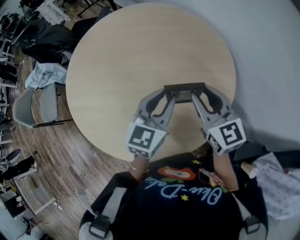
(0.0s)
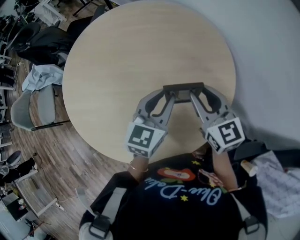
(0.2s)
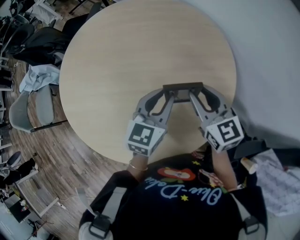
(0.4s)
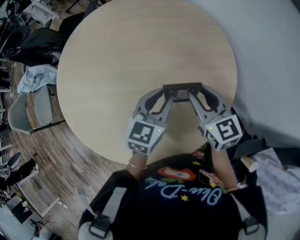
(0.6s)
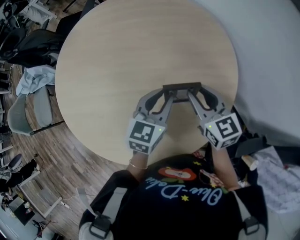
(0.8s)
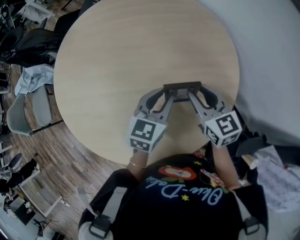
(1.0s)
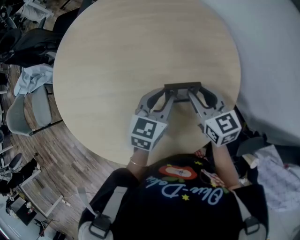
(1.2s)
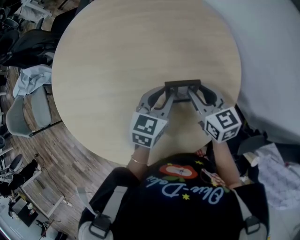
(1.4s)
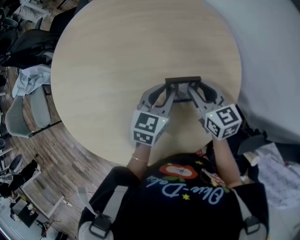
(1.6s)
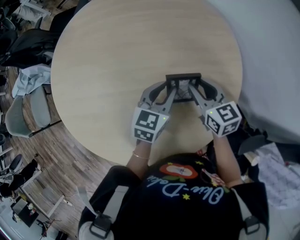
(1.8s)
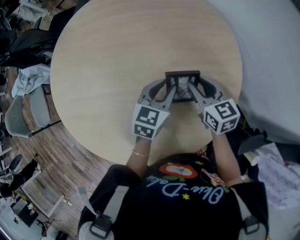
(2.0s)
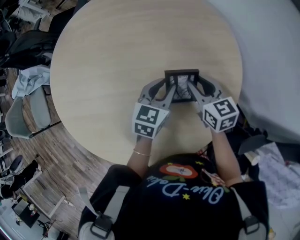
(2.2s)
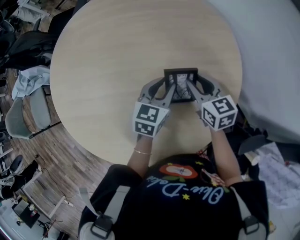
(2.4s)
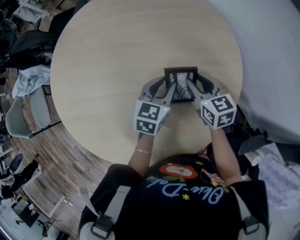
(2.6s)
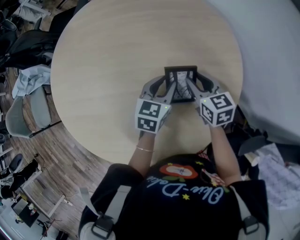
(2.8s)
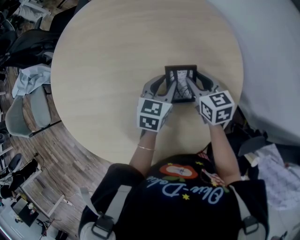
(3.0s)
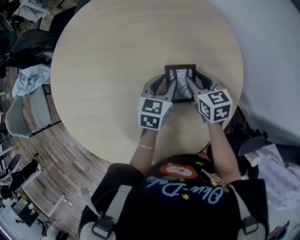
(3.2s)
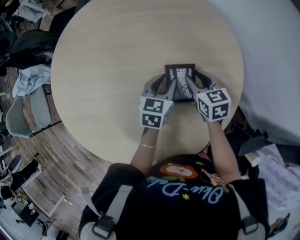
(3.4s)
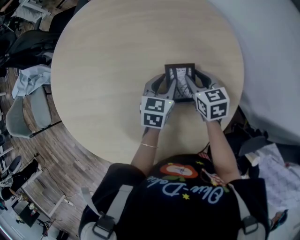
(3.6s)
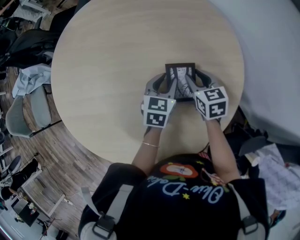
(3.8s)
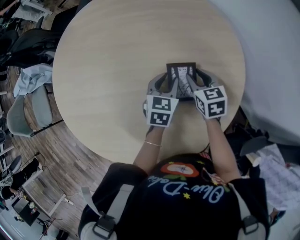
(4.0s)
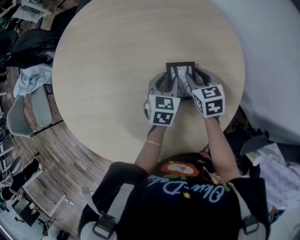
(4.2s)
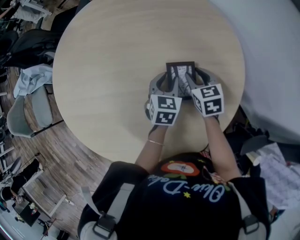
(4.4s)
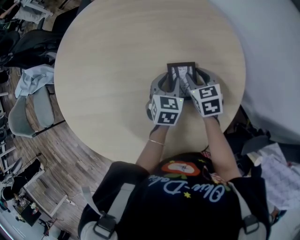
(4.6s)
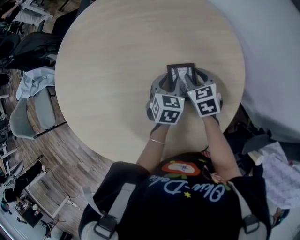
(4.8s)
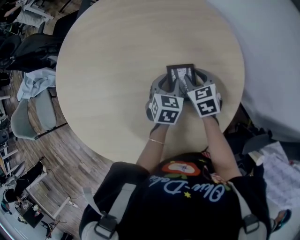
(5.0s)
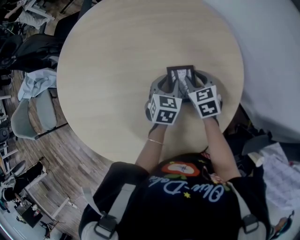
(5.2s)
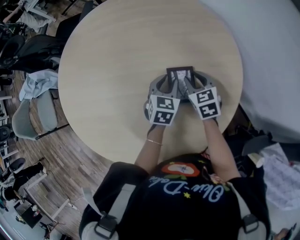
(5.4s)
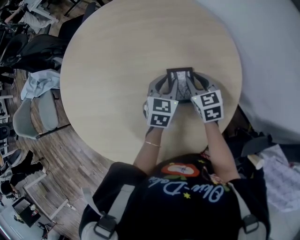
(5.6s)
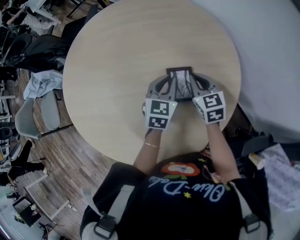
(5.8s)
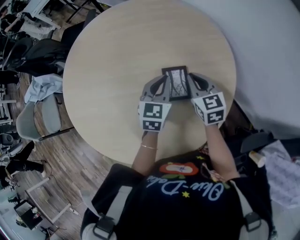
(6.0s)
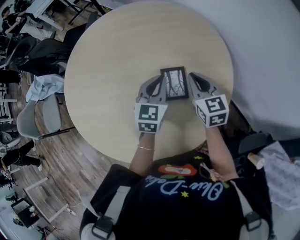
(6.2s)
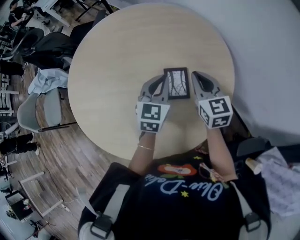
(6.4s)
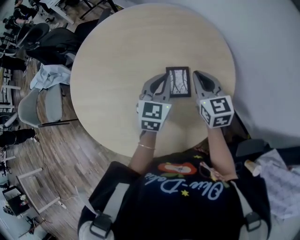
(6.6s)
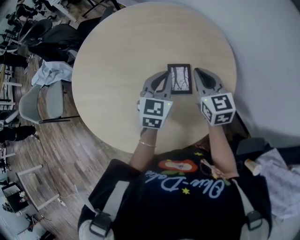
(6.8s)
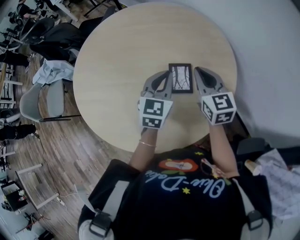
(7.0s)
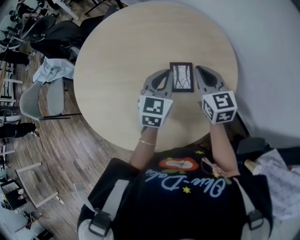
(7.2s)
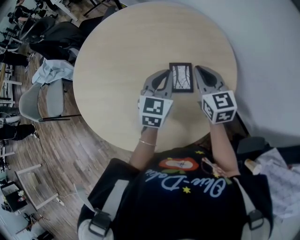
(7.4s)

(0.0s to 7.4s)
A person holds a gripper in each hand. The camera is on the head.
0.0s - 1.4s: The two grippers go approximately 10 cm downward.
1.4s - 3.0s: The left gripper shifts by about 5 cm. Meanwhile the right gripper goes approximately 5 cm forward and downward.
3.0s - 4.4s: The grippers move only a little.
4.4s - 6.0s: The two grippers go approximately 10 cm upward. The left gripper closes its fingers. The right gripper closes up.
6.0s - 7.4s: The two grippers go roughly 10 cm upward.

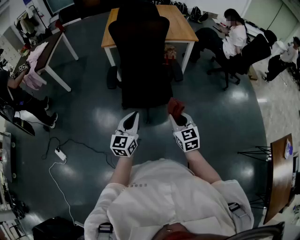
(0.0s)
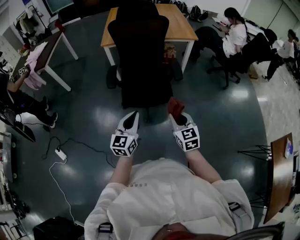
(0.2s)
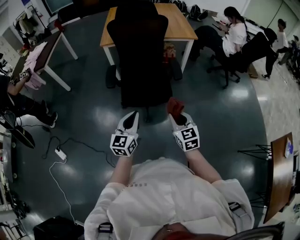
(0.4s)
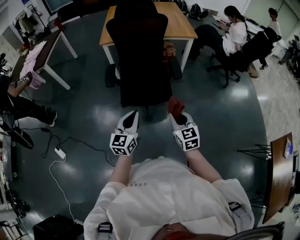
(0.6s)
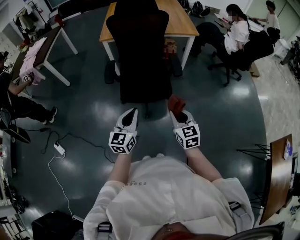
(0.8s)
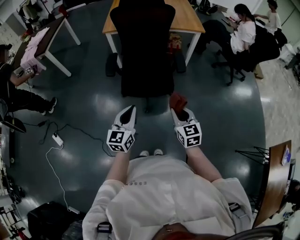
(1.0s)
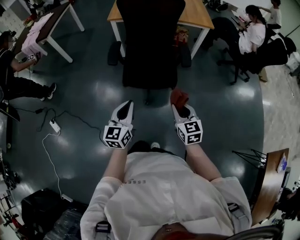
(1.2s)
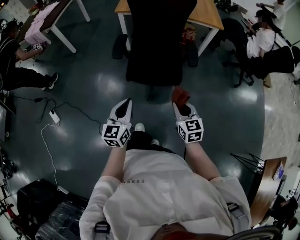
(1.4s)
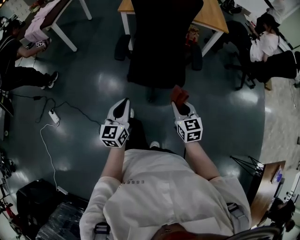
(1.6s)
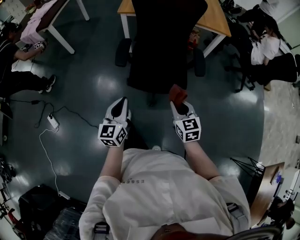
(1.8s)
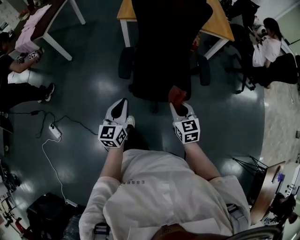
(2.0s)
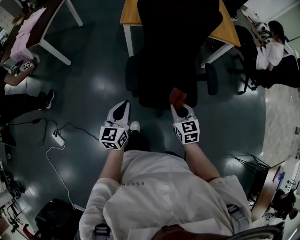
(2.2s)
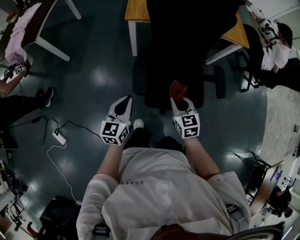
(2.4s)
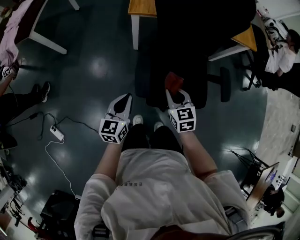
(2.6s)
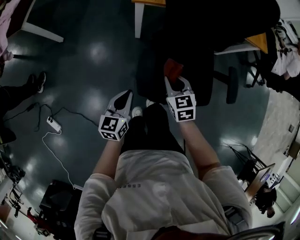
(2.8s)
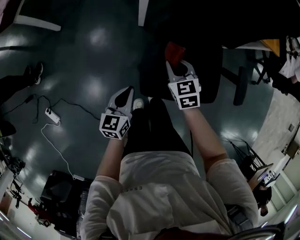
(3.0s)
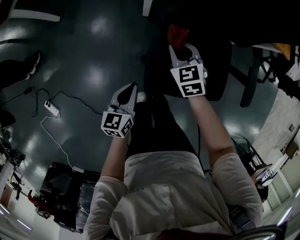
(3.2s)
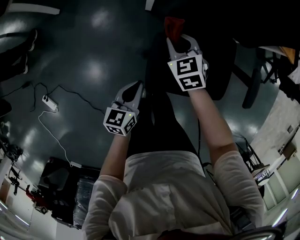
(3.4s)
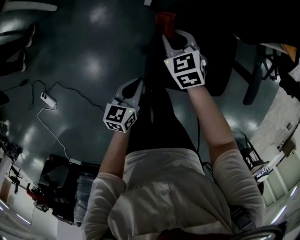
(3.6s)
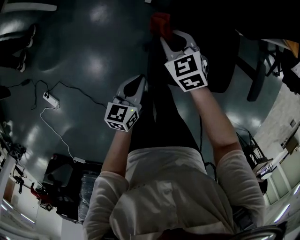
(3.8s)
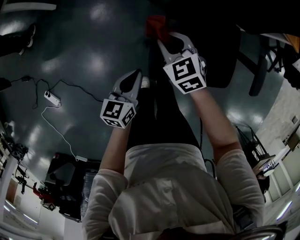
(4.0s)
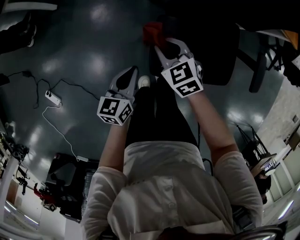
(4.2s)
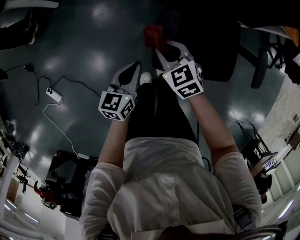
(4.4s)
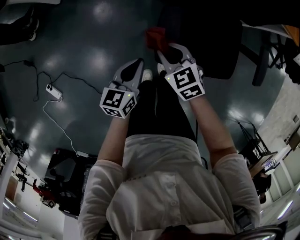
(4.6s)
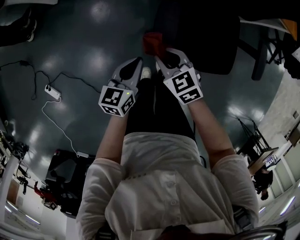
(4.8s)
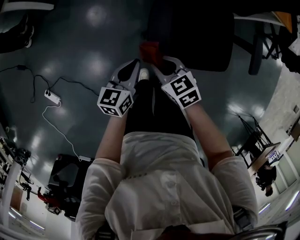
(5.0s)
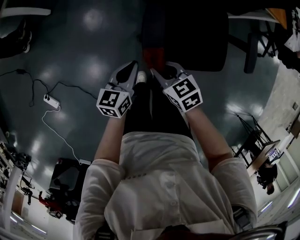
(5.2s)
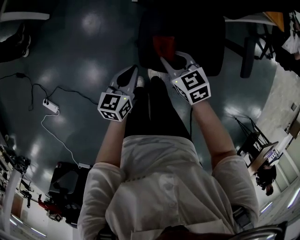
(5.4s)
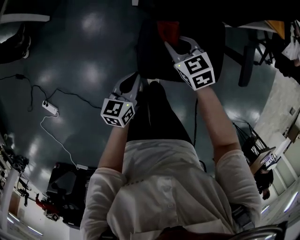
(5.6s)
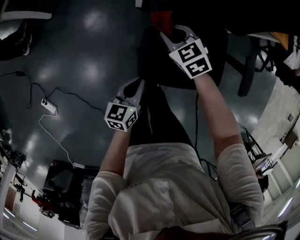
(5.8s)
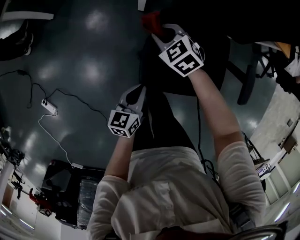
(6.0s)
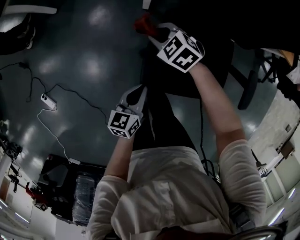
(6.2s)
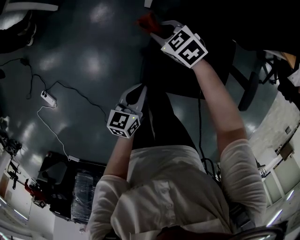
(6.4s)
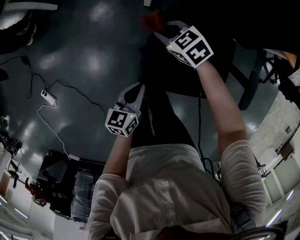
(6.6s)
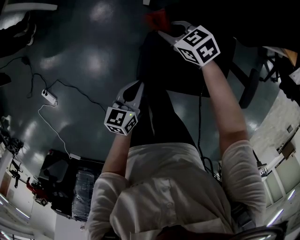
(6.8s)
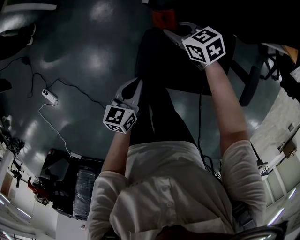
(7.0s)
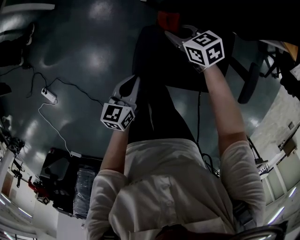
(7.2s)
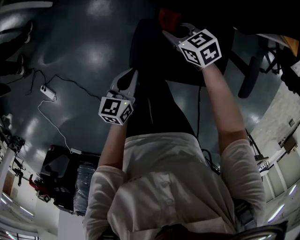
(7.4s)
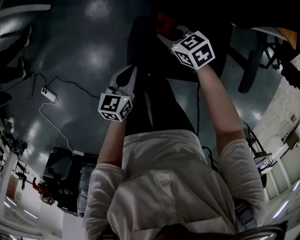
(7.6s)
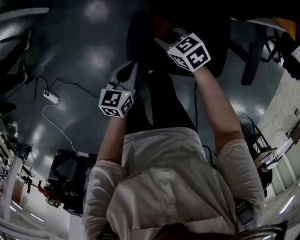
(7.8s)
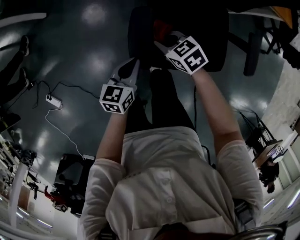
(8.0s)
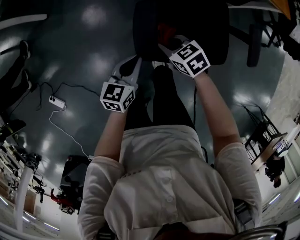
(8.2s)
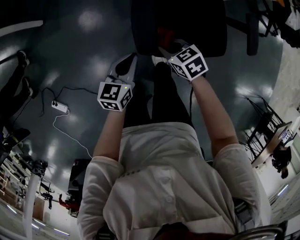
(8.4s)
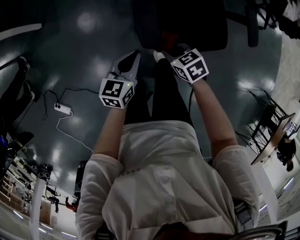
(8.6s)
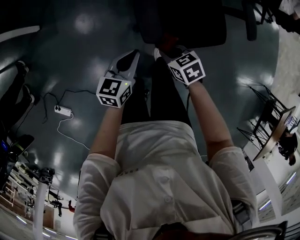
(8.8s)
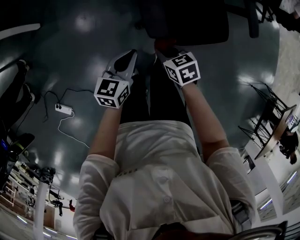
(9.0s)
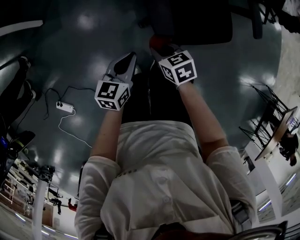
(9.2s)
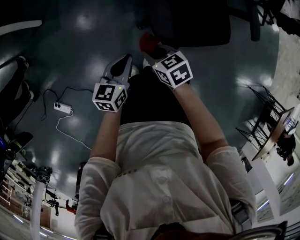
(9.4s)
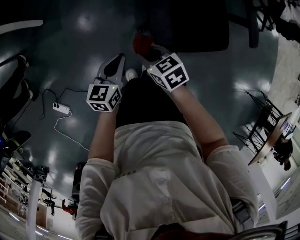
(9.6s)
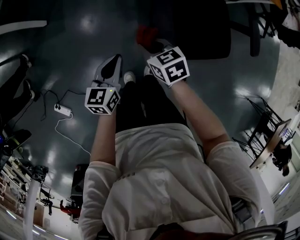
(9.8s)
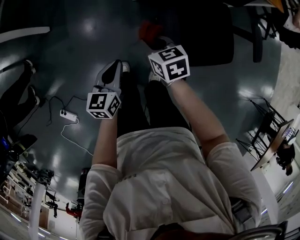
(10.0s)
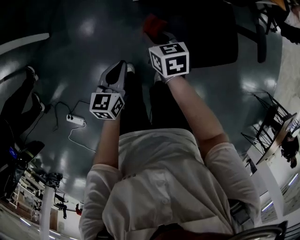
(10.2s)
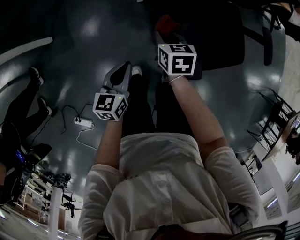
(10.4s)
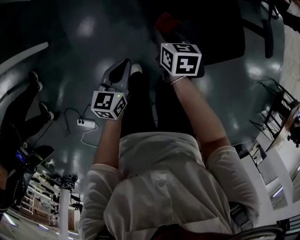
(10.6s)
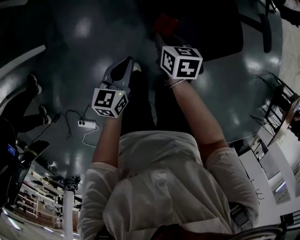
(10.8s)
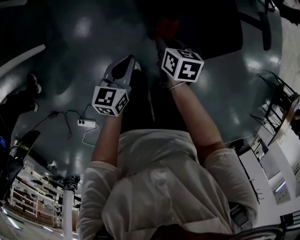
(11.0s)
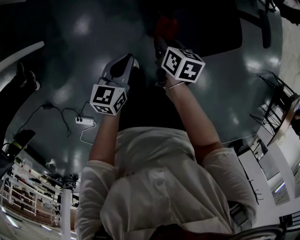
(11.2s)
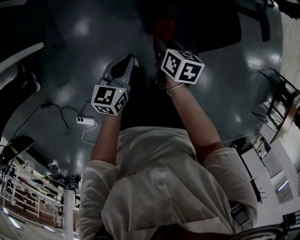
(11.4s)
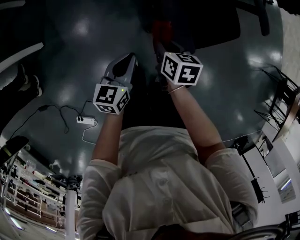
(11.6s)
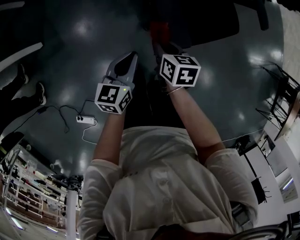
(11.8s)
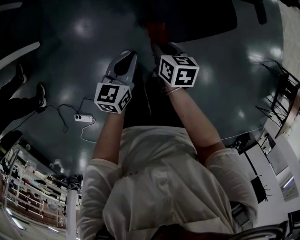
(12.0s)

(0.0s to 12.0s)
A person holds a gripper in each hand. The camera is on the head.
0.0s - 1.6s: The right gripper heads downward, covering approximately 5 cm, while the left gripper is displaced to the left and downward by about 10 cm.
1.6s - 3.0s: The right gripper is displaced forward and to the left by some 50 cm. The left gripper heads forward, to the left and downward, covering roughly 40 cm, and changes its angle by some 20 degrees.
3.0s - 4.4s: The right gripper heads to the left and backward, covering approximately 10 cm.
4.4s - 6.0s: The left gripper shifts approximately 5 cm to the right. The right gripper is displaced forward by approximately 15 cm.
6.0s - 7.6s: The right gripper goes approximately 10 cm backward, and swivels about 20 degrees.
7.6s - 9.0s: The right gripper ends up roughly 20 cm from where it was, and swivels roughly 30 degrees; the left gripper ends up some 10 cm from where it was, and turns by approximately 20 degrees.
9.0s - 10.4s: The right gripper shifts by roughly 25 cm, and rotates approximately 30 degrees. Meanwhile the left gripper moves some 20 cm.
10.4s - 12.0s: The left gripper goes about 15 cm to the right and backward. The right gripper travels backward and to the right by approximately 20 cm.

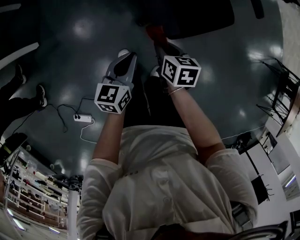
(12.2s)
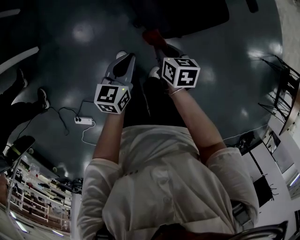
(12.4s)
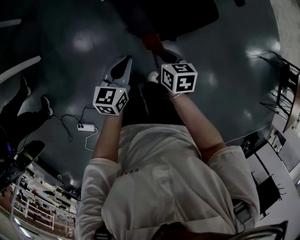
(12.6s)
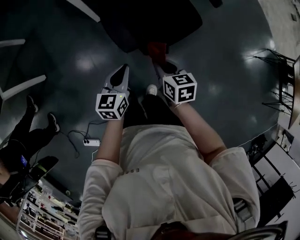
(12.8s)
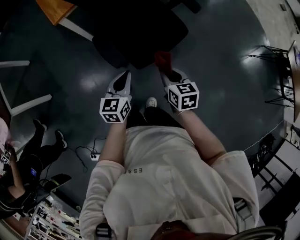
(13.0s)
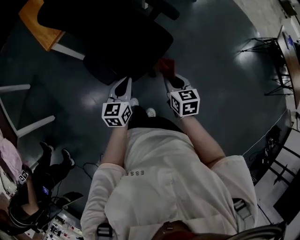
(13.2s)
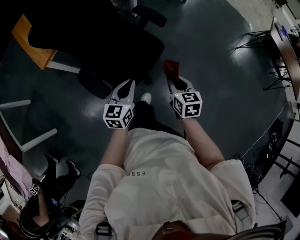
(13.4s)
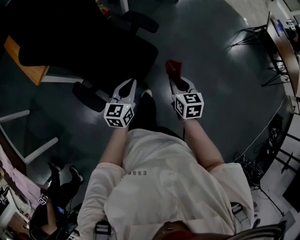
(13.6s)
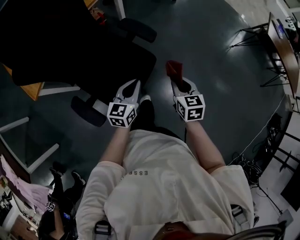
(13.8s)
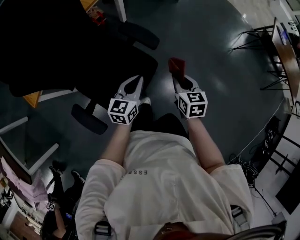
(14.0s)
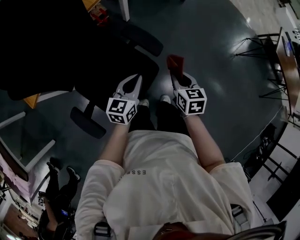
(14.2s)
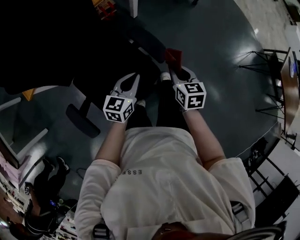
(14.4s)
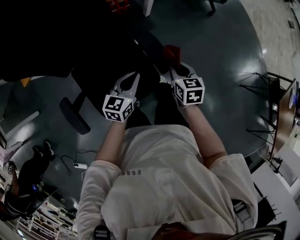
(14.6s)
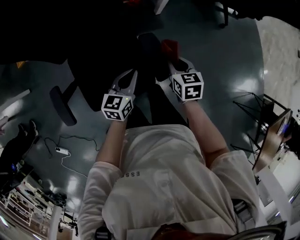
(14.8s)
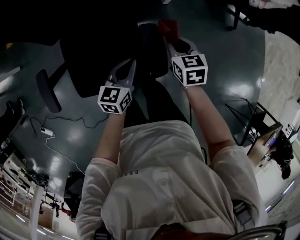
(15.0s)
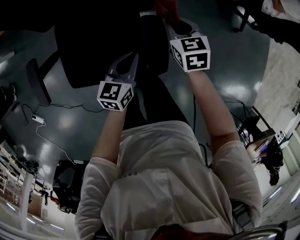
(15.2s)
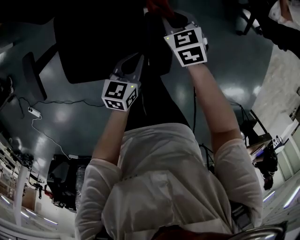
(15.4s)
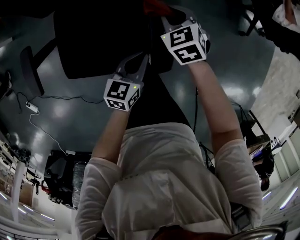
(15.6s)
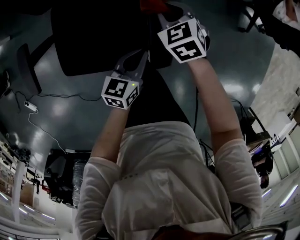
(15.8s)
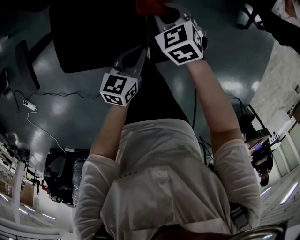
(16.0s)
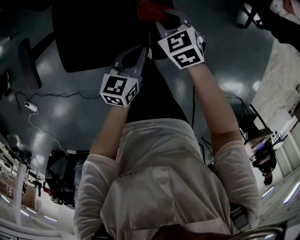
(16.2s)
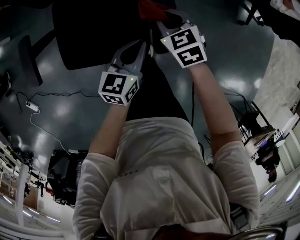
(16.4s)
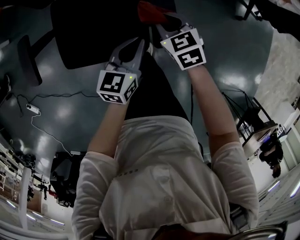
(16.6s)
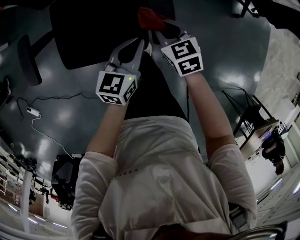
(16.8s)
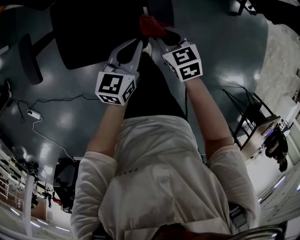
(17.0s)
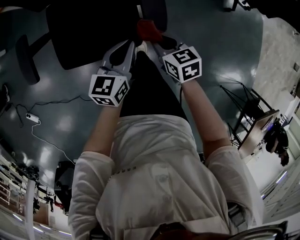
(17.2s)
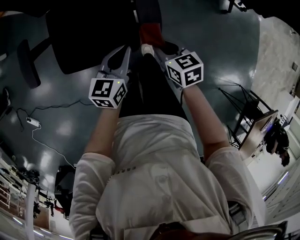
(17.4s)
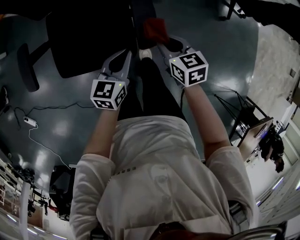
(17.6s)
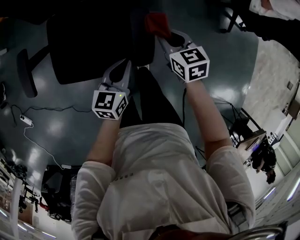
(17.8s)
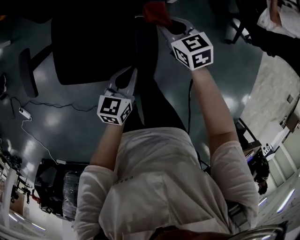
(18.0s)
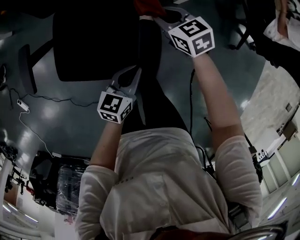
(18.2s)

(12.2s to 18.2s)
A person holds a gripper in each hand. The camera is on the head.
12.2s - 13.8s: The two grippers travel together, approximately 40 cm. The right gripper rotates roughly 30 degrees. The left gripper turns by some 30 degrees.
13.8s - 15.2s: The left gripper ends up approximately 25 cm from where it was, and changes its angle by about 50 degrees. Meanwhile the right gripper shifts by about 40 cm, and changes its angle by approximately 60 degrees.
15.2s - 16.6s: The left gripper shifts roughly 5 cm backward. The right gripper travels backward and to the left by approximately 15 cm.
16.6s - 18.2s: The left gripper shifts by approximately 5 cm. Meanwhile the right gripper travels forward by about 15 cm.
